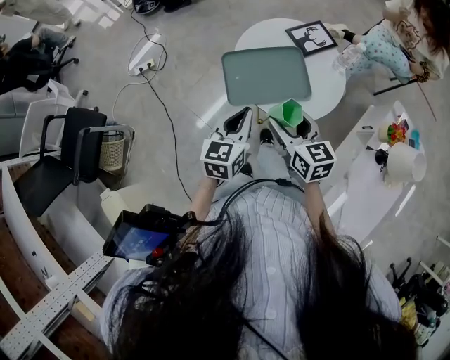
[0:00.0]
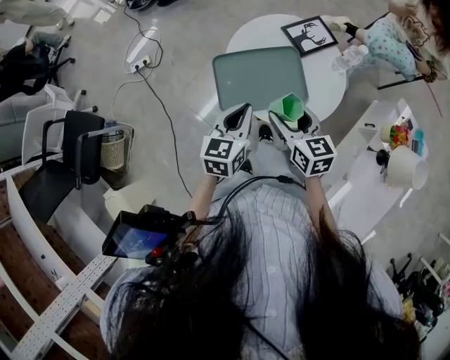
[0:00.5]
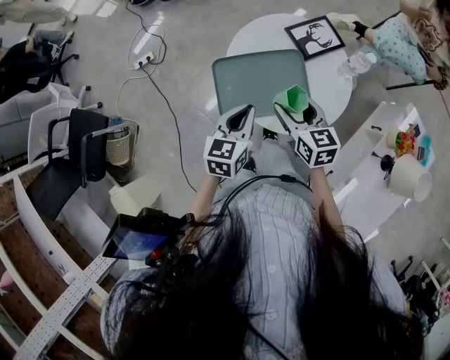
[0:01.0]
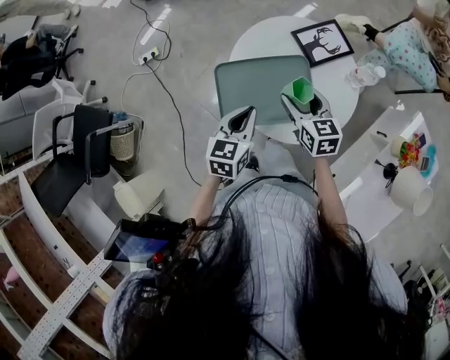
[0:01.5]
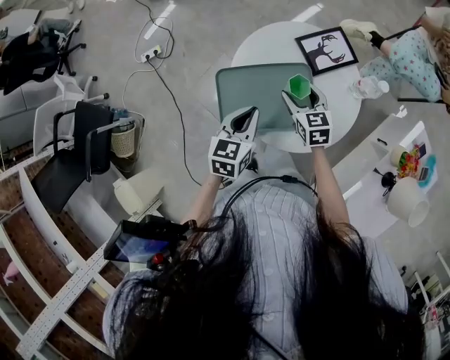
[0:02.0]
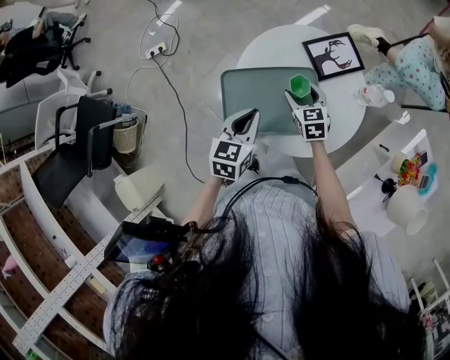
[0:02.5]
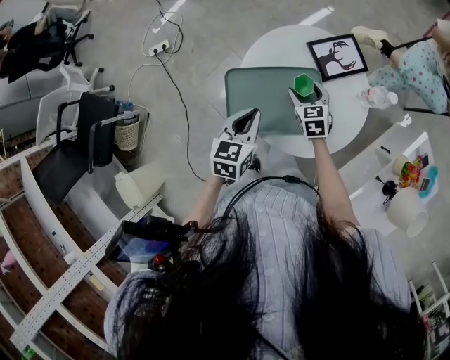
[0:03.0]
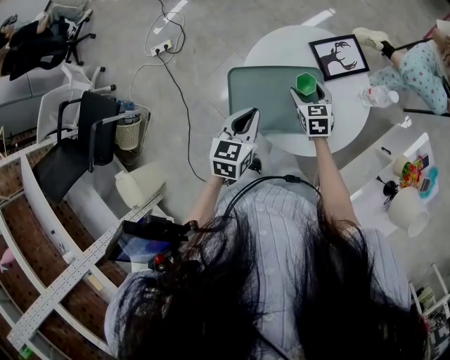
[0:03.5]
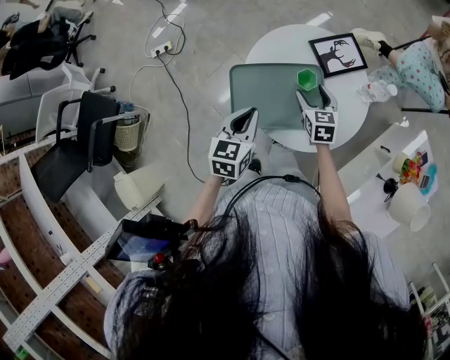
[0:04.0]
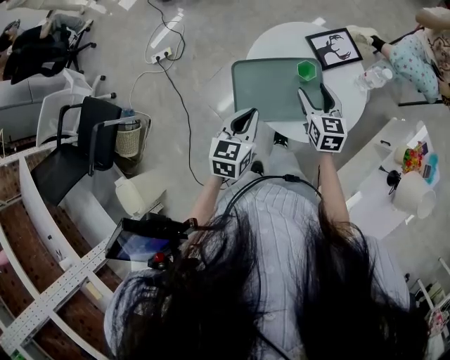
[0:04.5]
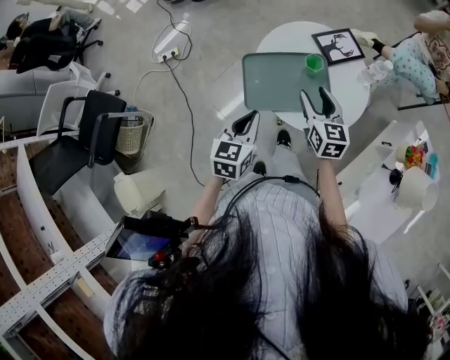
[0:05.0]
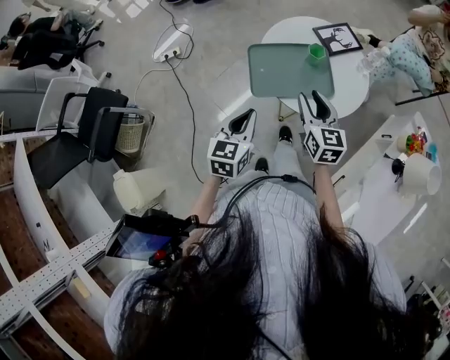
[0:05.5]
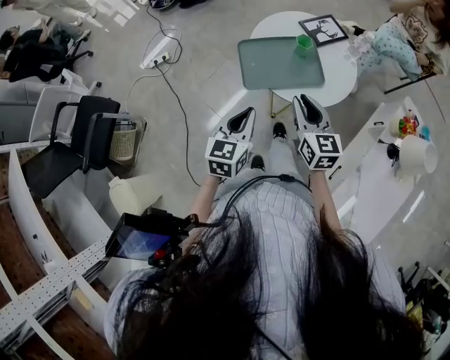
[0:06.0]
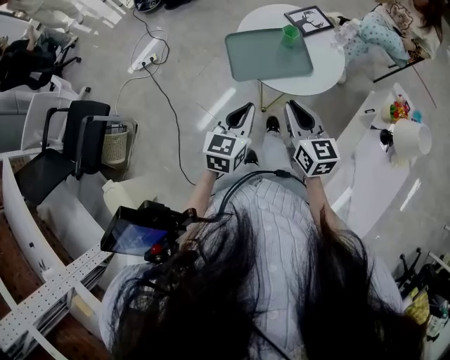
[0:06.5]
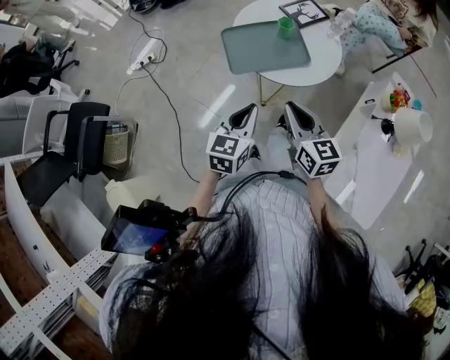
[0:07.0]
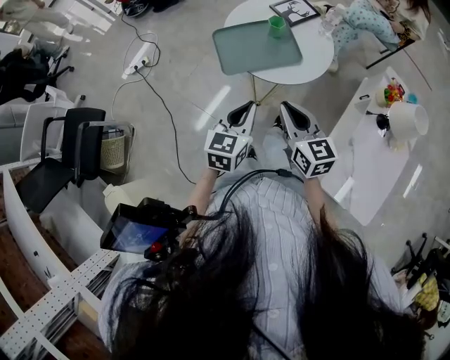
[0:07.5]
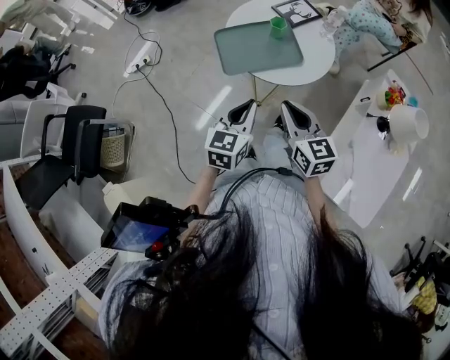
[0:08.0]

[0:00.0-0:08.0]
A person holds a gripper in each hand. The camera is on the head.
0:00.0 to 0:02.0: The left gripper shifts about 15 cm forward, downward and to the right, while the right gripper is displaced forward and downward by roughly 25 cm.
0:04.0 to 0:06.0: The right gripper moves backward and upward, some 30 cm, swivels roughly 20 degrees, and closes, while the left gripper is displaced backward by approximately 20 cm.
0:06.0 to 0:08.0: The left gripper goes approximately 5 cm to the right; the right gripper heads backward, covering about 10 cm.

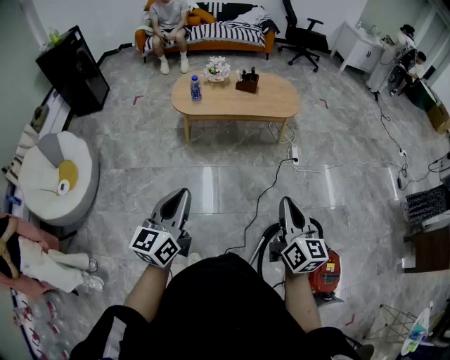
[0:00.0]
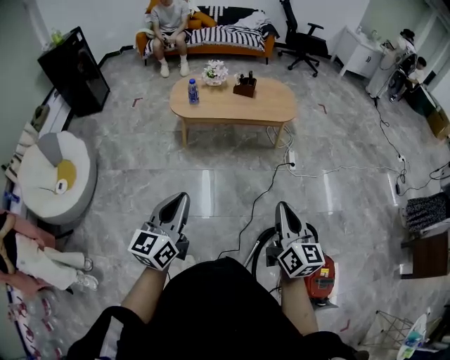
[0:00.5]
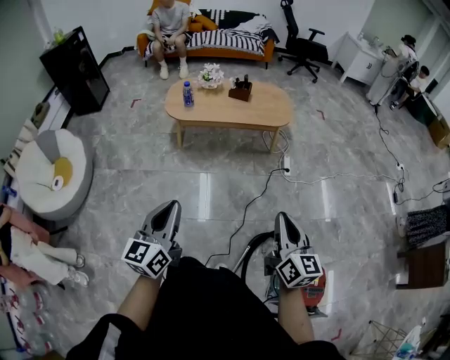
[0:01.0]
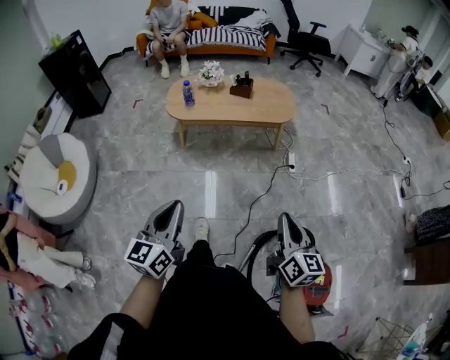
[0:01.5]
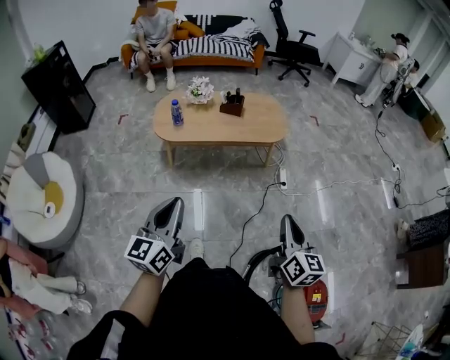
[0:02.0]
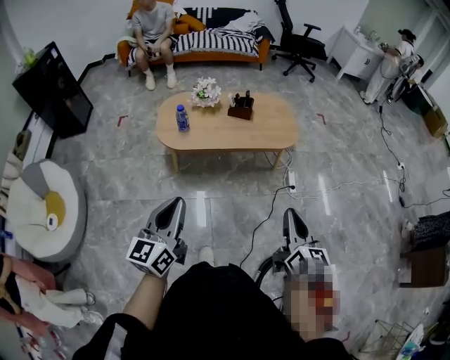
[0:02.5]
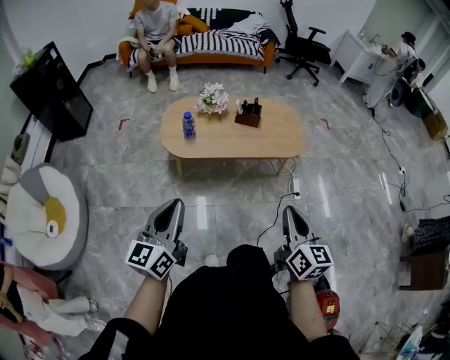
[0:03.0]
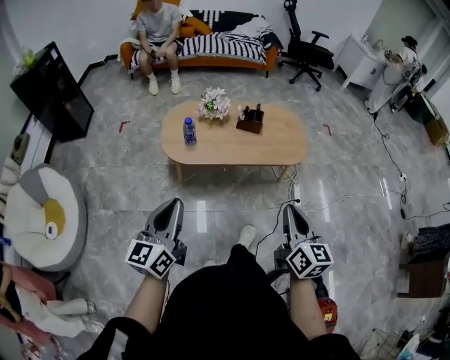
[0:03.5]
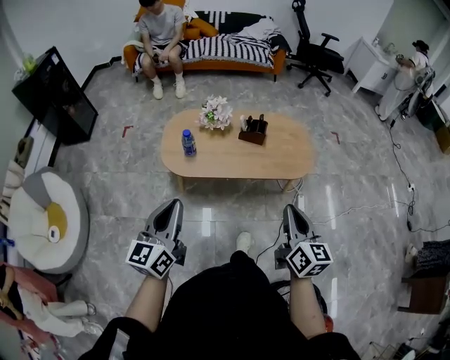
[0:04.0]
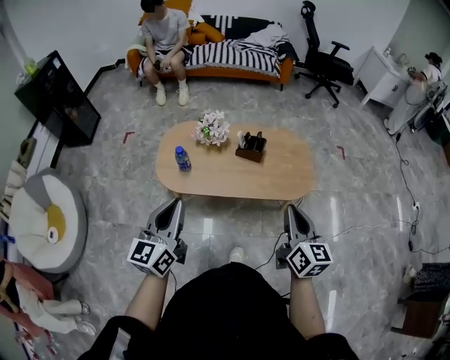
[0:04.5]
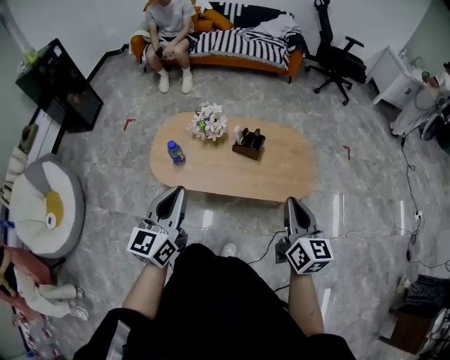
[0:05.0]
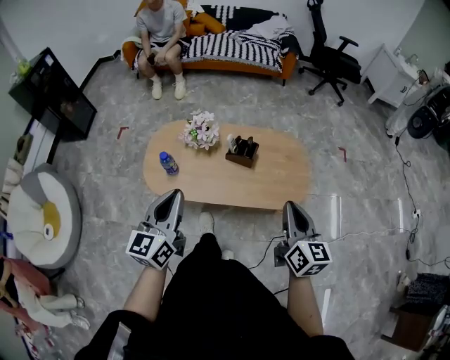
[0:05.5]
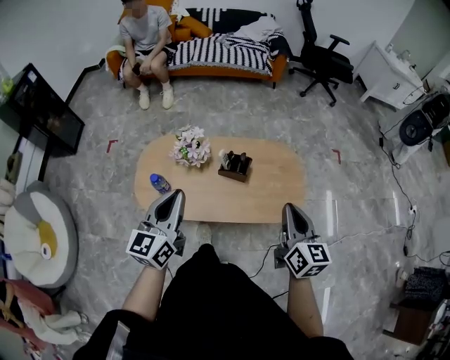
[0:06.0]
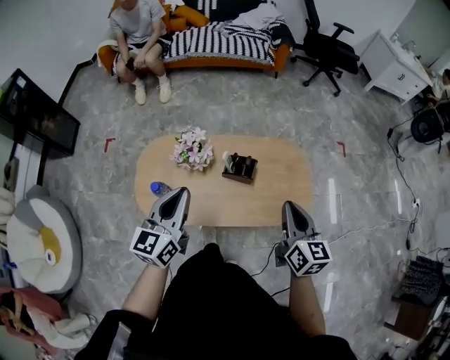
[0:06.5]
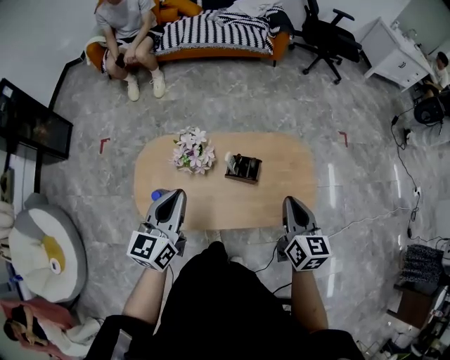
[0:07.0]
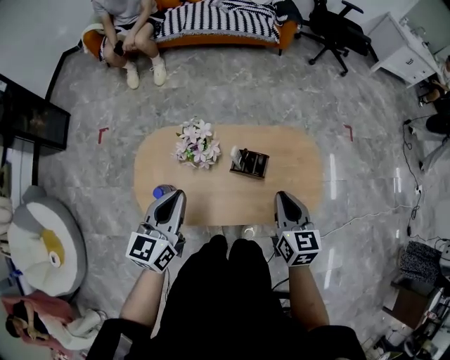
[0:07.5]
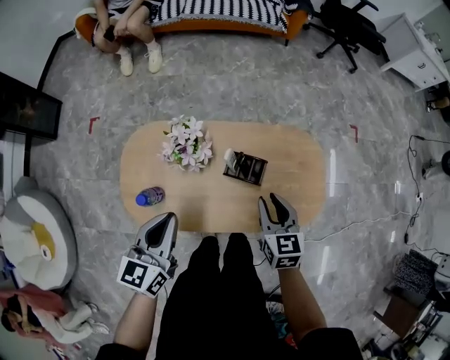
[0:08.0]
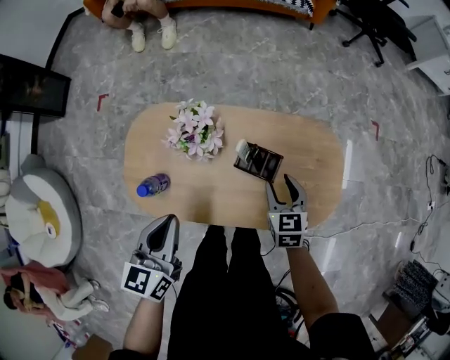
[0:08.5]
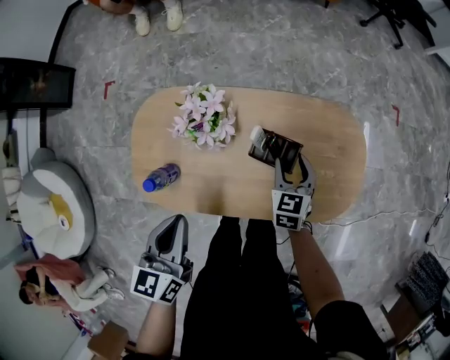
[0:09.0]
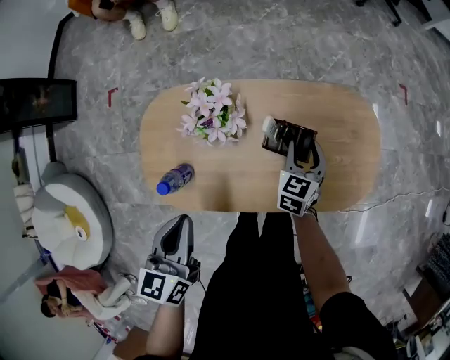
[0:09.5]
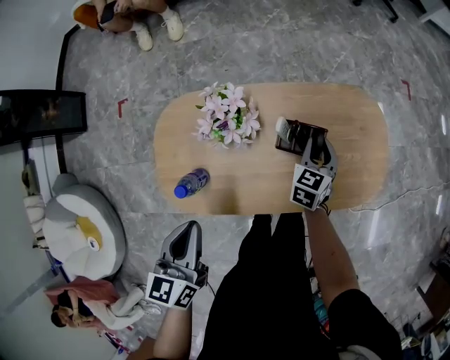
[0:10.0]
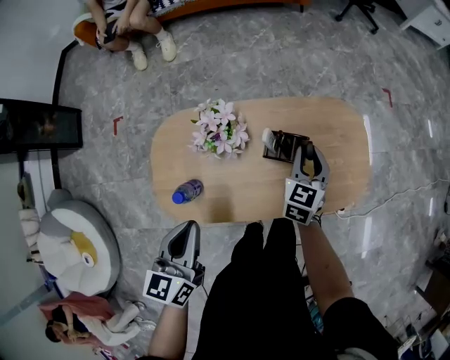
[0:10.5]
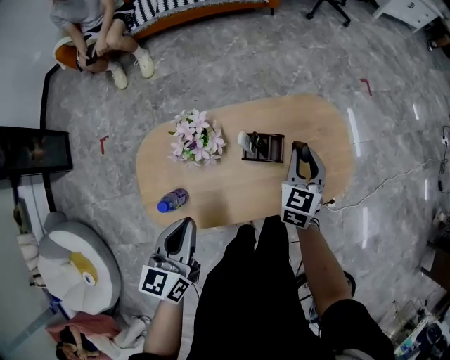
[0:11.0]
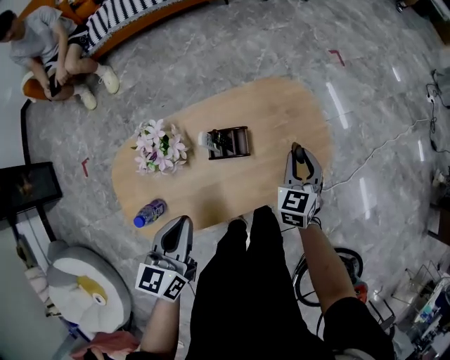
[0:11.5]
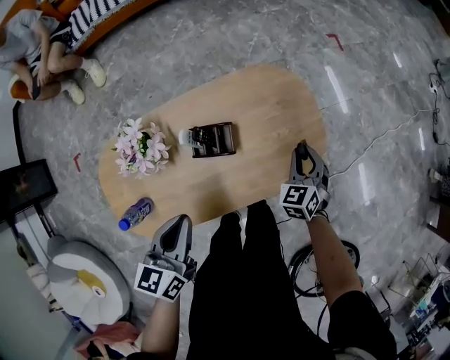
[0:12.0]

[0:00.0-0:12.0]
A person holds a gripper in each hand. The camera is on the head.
0:00.0 to 0:02.0: The right gripper shifts some 15 cm forward and to the right. Meanwhile the left gripper goes some 15 cm forward.
0:02.0 to 0:04.0: The two grippers go about 30 cm forward and to the left.
0:04.0 to 0:06.0: The grippers both shift forward by about 30 cm.
0:06.0 to 0:08.0: The left gripper heads downward and forward, covering some 20 cm. The right gripper travels downward, forward and to the left by roughly 30 cm, turns by approximately 30 degrees, and opens its fingers.
0:08.0 to 0:10.0: The right gripper heads downward and forward, covering about 20 cm, rotates approximately 30 degrees, and opens and closes again. Meanwhile the left gripper travels to the left and downward by roughly 10 cm.
0:10.0 to 0:12.0: The right gripper heads to the right, covering about 25 cm. Meanwhile the left gripper heads to the right and forward, covering some 20 cm, and rotates roughly 20 degrees.

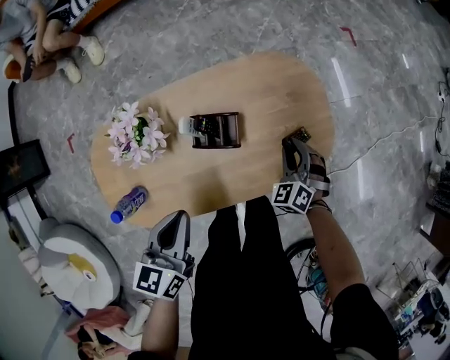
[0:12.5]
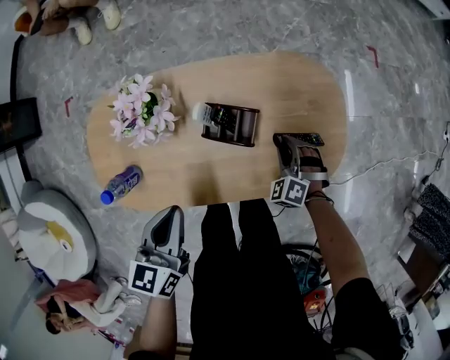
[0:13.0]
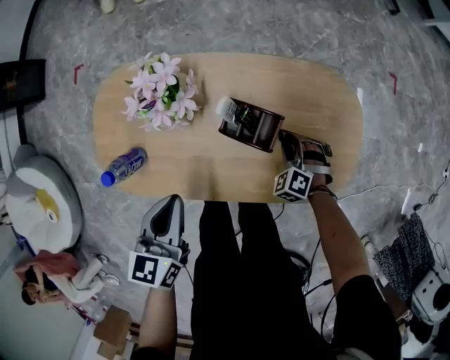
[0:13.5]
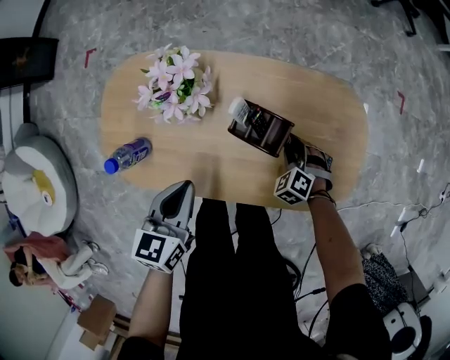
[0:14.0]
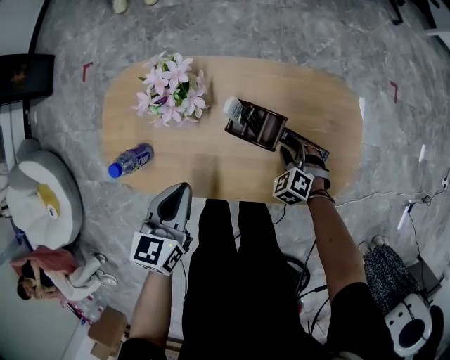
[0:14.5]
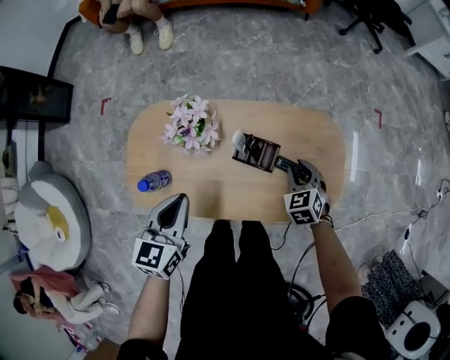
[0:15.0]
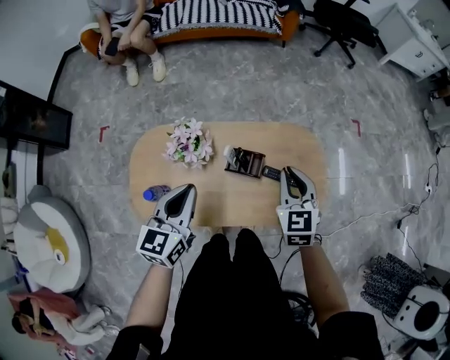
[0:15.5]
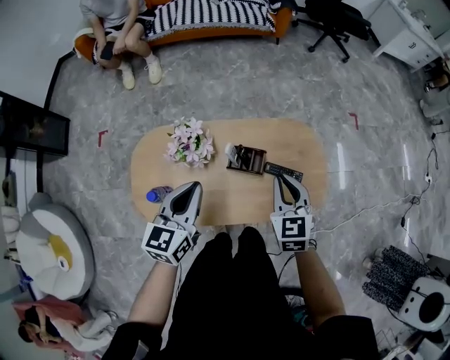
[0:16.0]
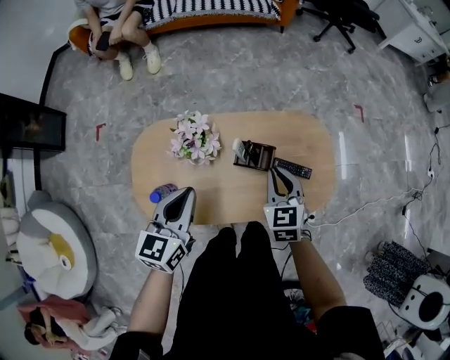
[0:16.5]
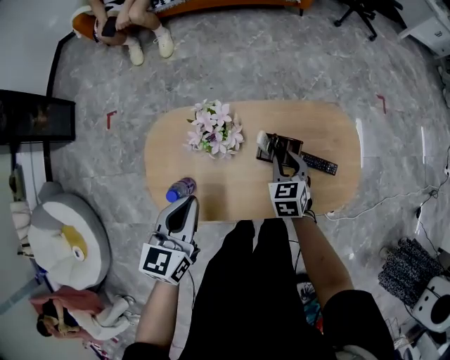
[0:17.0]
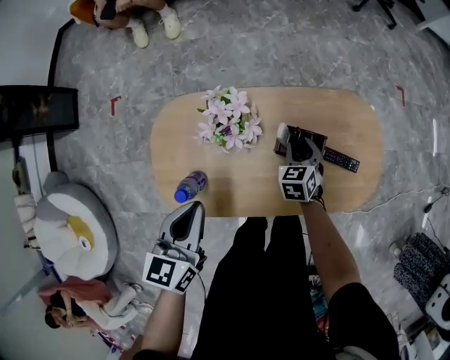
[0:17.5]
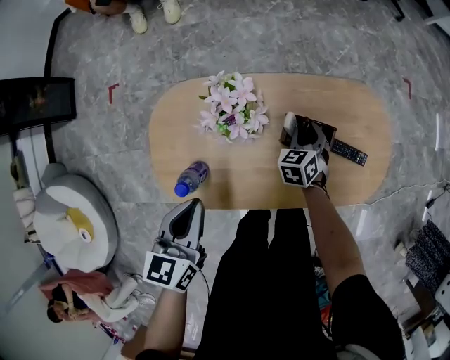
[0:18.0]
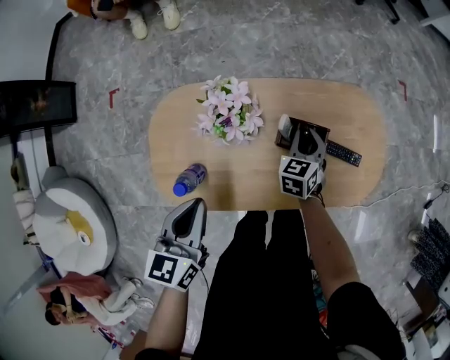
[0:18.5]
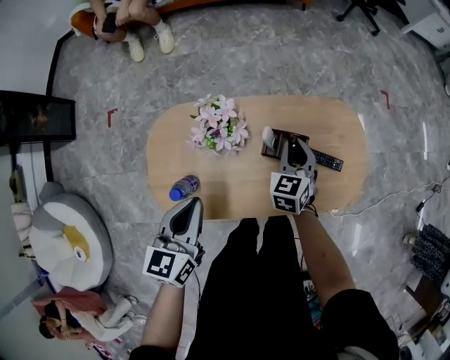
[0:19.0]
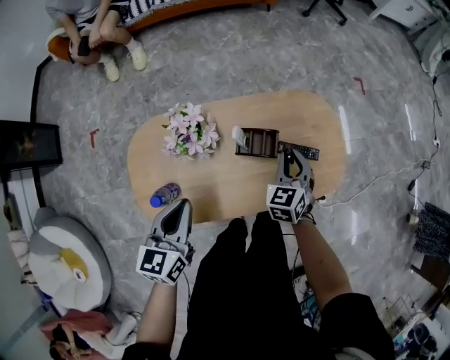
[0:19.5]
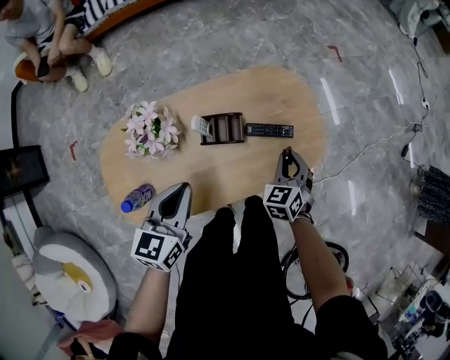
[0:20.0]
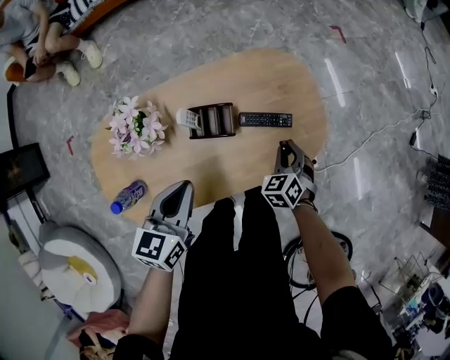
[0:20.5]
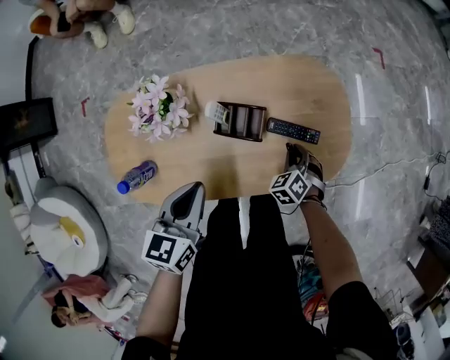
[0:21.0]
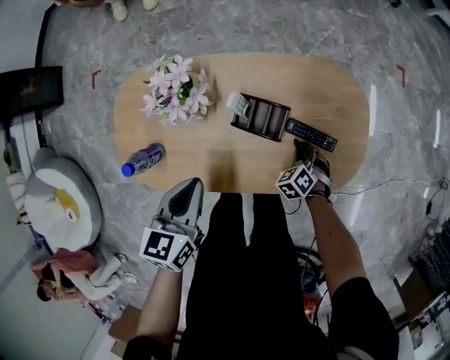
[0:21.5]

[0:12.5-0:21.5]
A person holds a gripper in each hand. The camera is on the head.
0:12.5 to 0:14.5: The left gripper ends up roughly 5 cm from where it was; the right gripper changes place by about 15 cm, and swivels roughly 30 degrees.
0:14.5 to 0:17.0: Both grippers move upward and to the left, about 20 cm. The right gripper rotates around the line of its fingers by approximately 50 degrees, clockwise from behind.
0:17.0 to 0:19.5: The right gripper heads to the right, covering about 10 cm, and moves some 10 cm downward and comes back.
0:19.5 to 0:21.5: The right gripper heads downward, covering approximately 25 cm, and tilts its fingers some 30 degrees downward, while the left gripper travels downward and to the right by approximately 10 cm.
